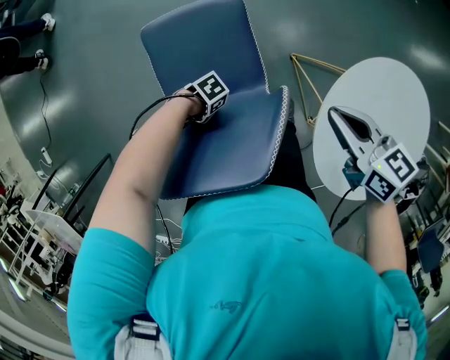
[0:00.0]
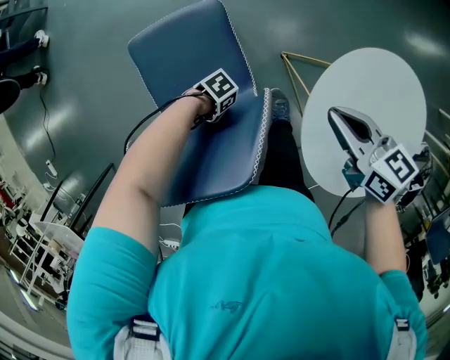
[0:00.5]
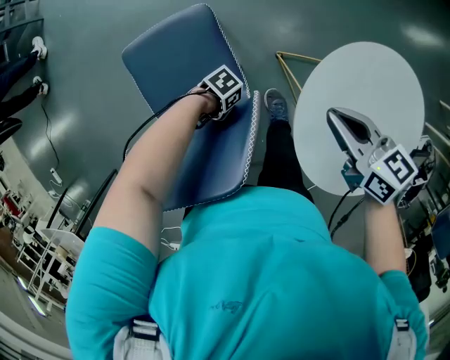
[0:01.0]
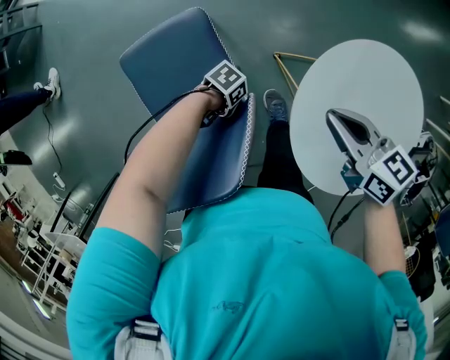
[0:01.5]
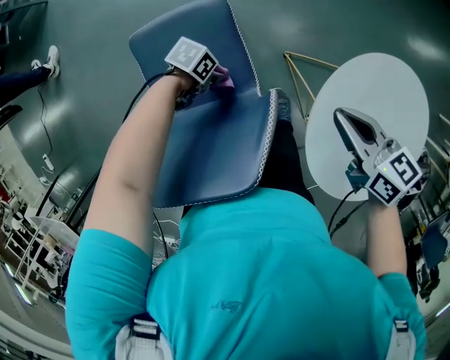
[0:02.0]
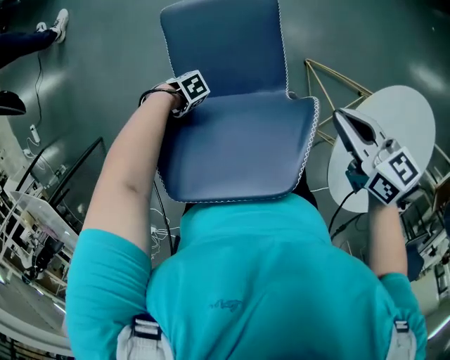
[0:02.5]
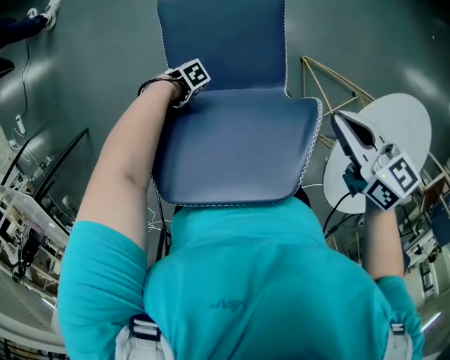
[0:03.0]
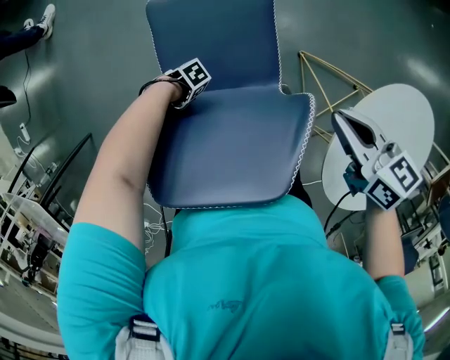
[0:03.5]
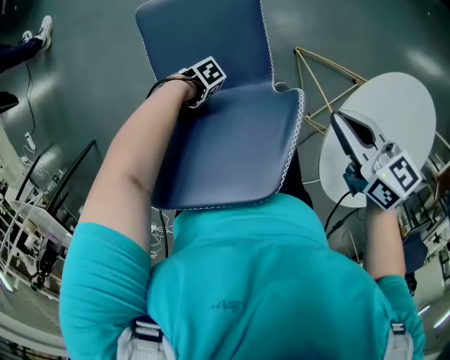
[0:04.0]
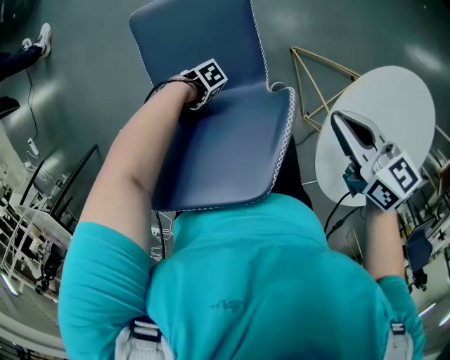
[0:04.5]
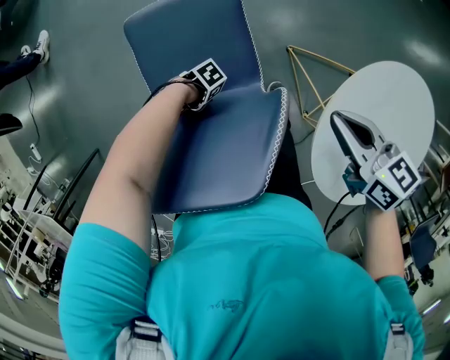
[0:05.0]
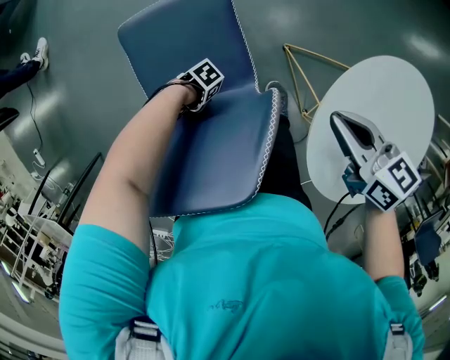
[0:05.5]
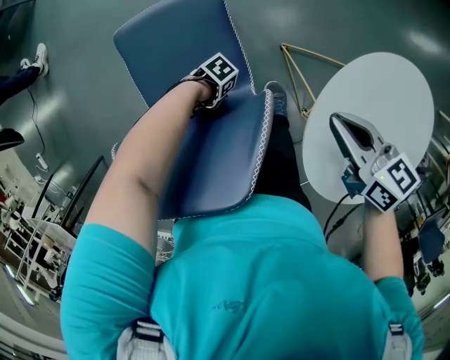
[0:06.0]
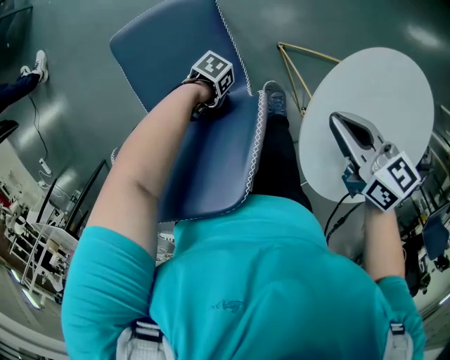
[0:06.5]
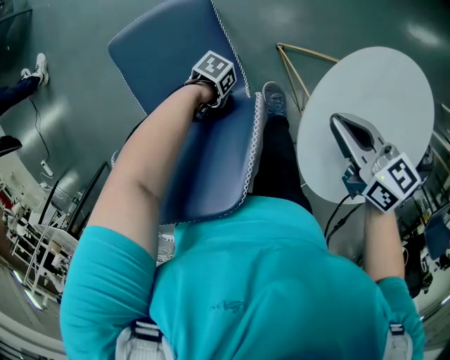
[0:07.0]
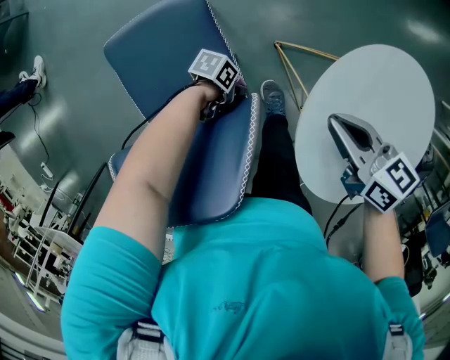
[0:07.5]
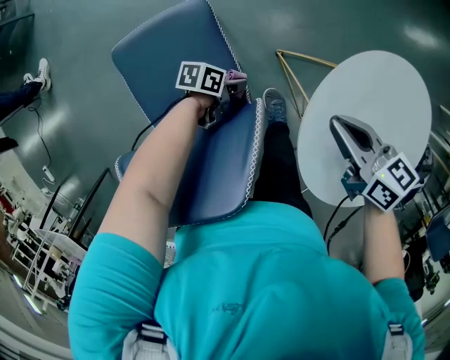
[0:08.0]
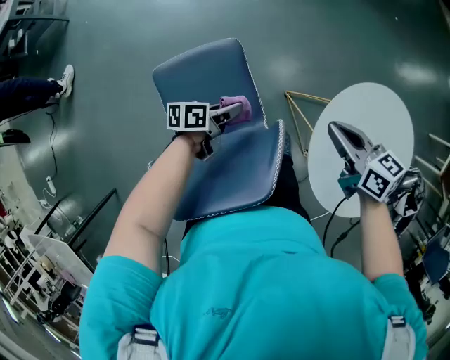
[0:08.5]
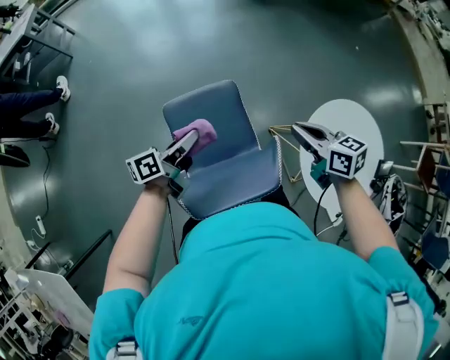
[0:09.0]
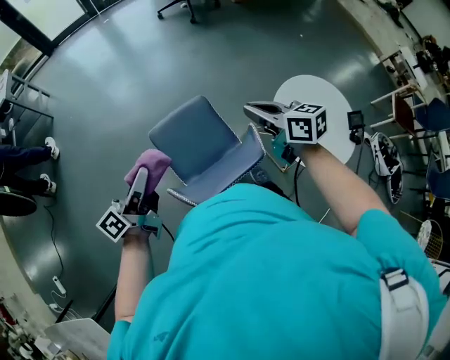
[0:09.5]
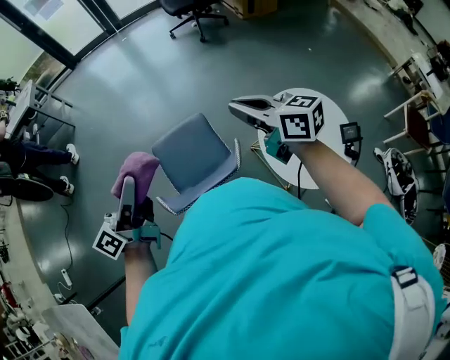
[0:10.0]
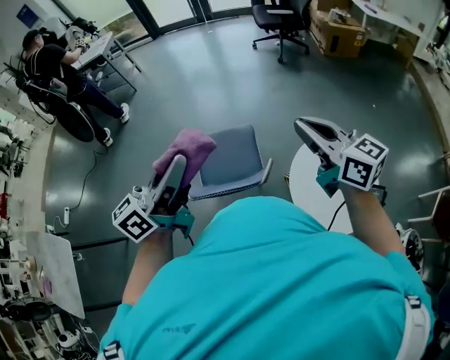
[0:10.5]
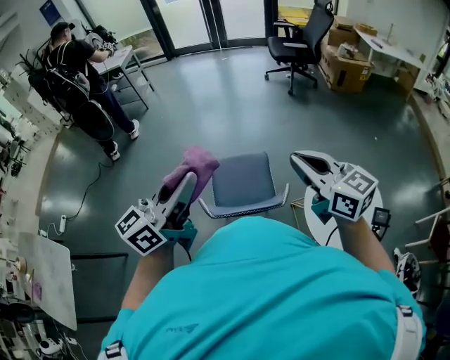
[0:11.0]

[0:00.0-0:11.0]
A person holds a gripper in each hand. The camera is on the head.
0:02.0 to 0:03.5: The right gripper shifts by some 10 cm.
0:03.5 to 0:05.5: The right gripper changes place by some 10 cm.
0:07.5 to 0:09.0: The right gripper moves about 25 cm.
0:09.0 to 0:11.0: The right gripper moves upward, approximately 30 cm, and rotates about 30 degrees.

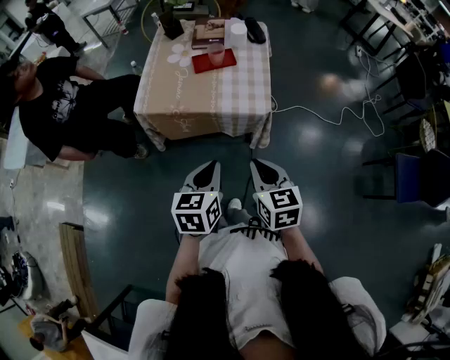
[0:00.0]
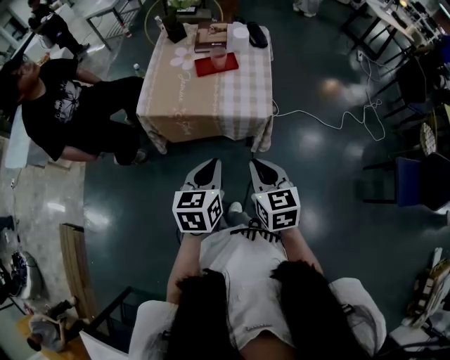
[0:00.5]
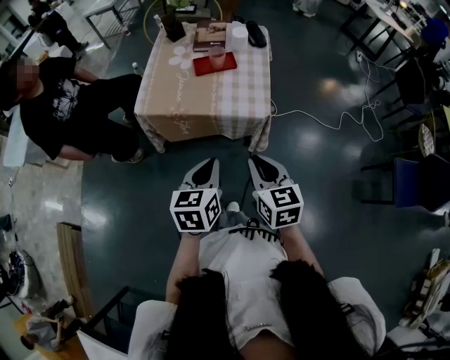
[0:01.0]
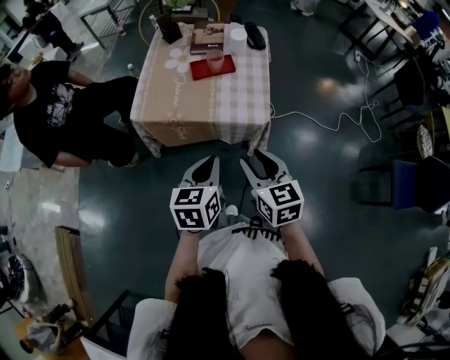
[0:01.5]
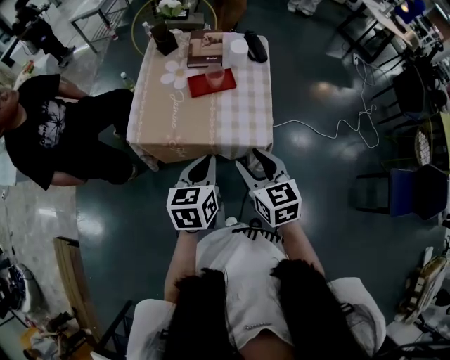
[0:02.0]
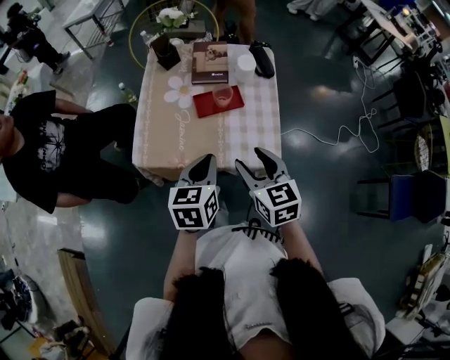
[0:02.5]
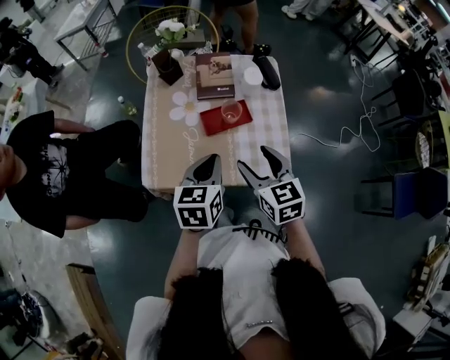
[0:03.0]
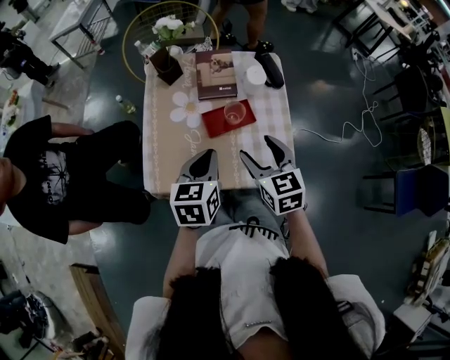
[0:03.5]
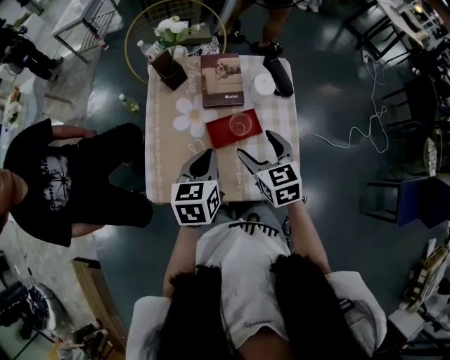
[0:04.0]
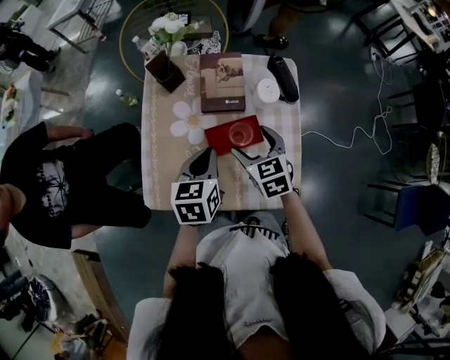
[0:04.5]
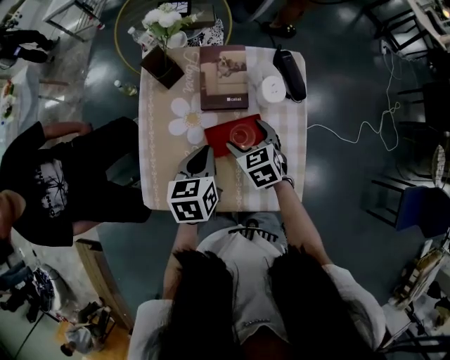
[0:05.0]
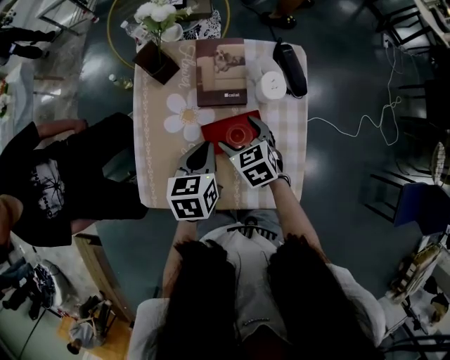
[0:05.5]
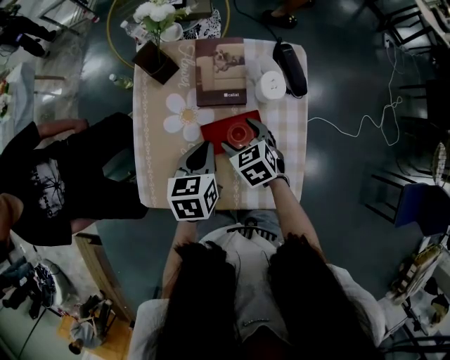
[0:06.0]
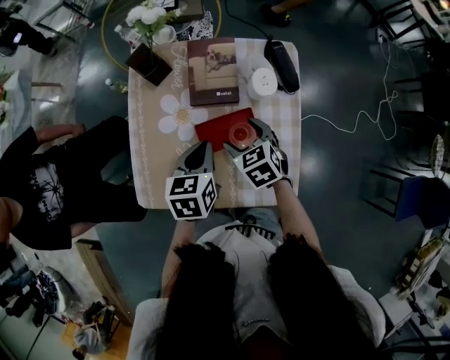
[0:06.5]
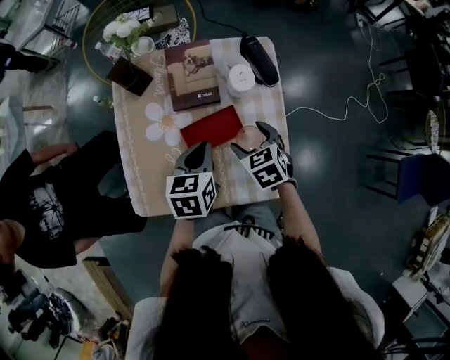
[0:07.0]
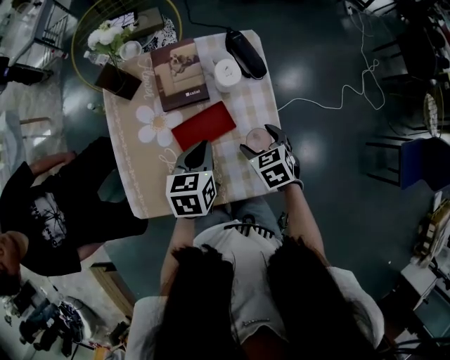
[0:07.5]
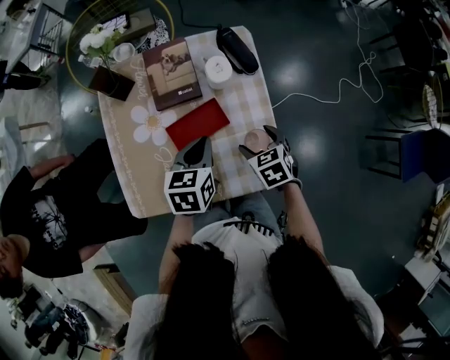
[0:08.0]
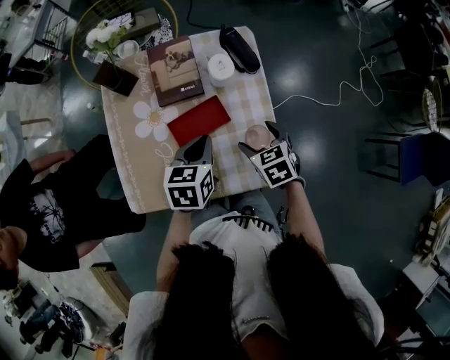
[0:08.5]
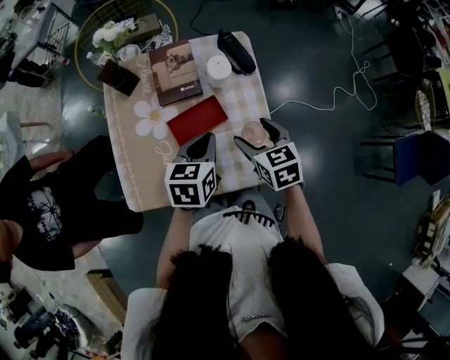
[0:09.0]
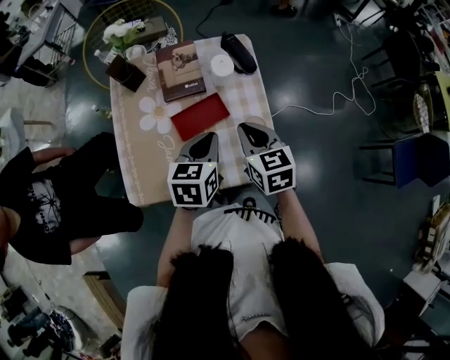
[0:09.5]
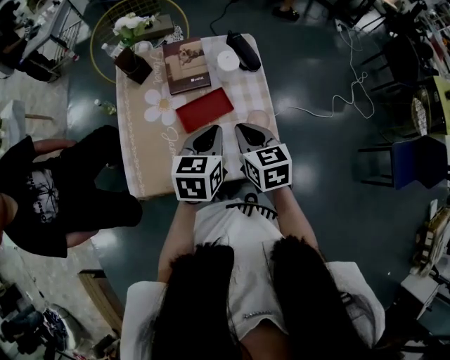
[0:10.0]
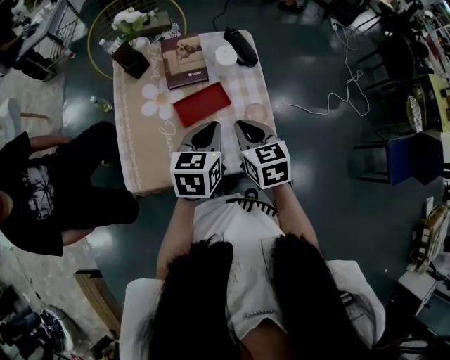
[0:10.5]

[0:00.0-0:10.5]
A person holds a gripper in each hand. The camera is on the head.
0:00.0 to 0:02.0: Both grippers move forward, about 15 cm. The right gripper opens its fingers.
0:02.0 to 0:04.0: The grippers both shift forward by approximately 25 cm. The right gripper opens.
0:04.0 to 0:06.5: The left gripper travels forward and downward by approximately 10 cm, while the right gripper moves downward and forward, about 15 cm, and turns by approximately 20 degrees.
0:06.5 to 0:08.5: The left gripper heads to the right, covering some 10 cm. Meanwhile the right gripper is displaced to the right and backward by some 15 cm.
0:08.5 to 0:10.5: The right gripper shifts about 15 cm upward, backward and to the left, and closes. The left gripper goes roughly 10 cm backward and upward.

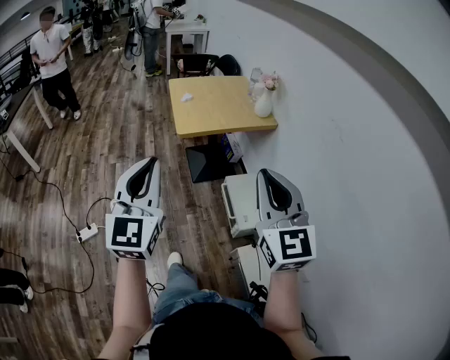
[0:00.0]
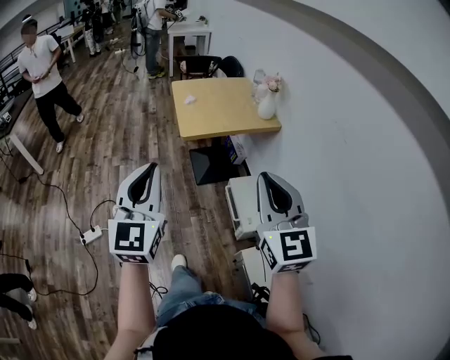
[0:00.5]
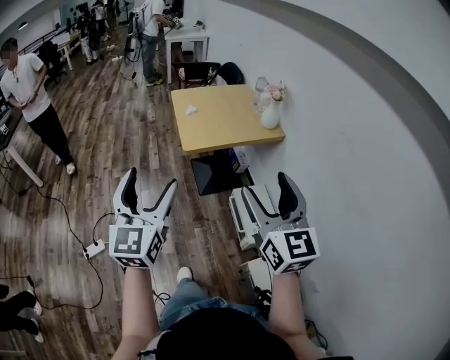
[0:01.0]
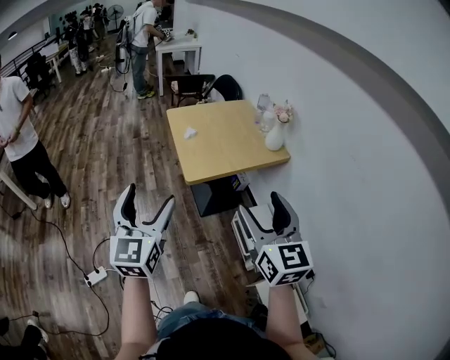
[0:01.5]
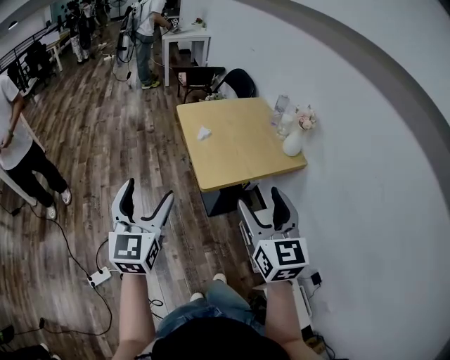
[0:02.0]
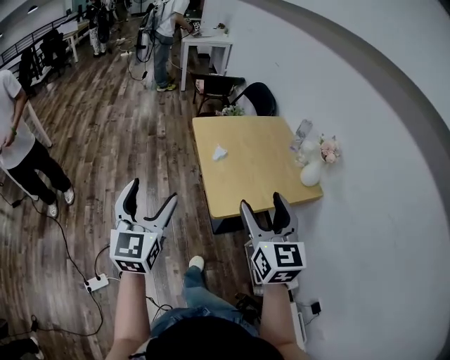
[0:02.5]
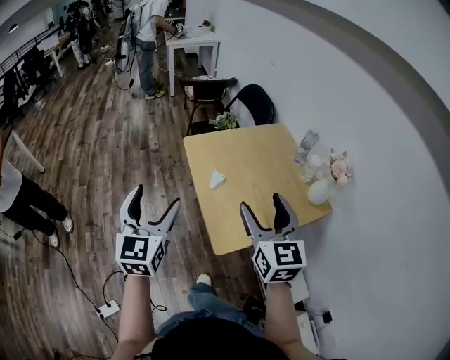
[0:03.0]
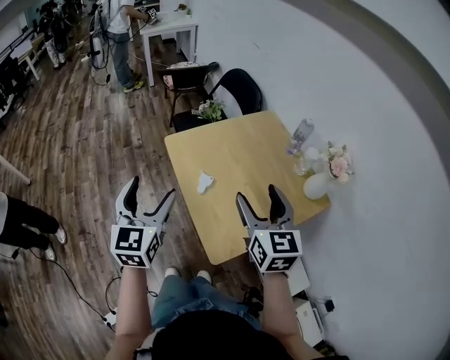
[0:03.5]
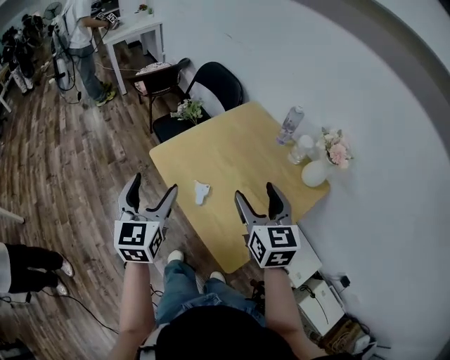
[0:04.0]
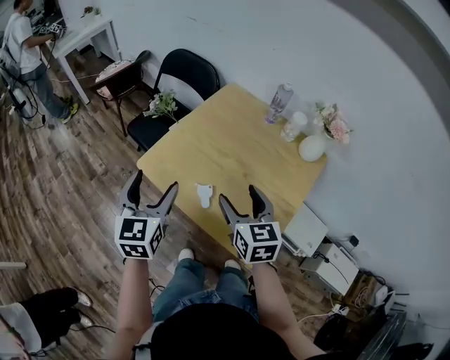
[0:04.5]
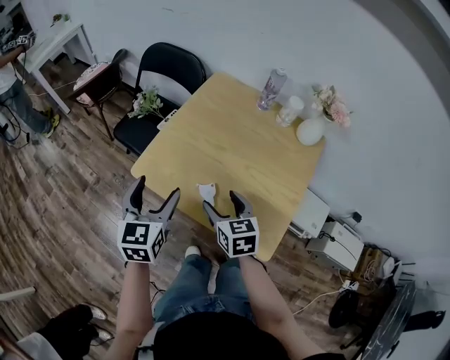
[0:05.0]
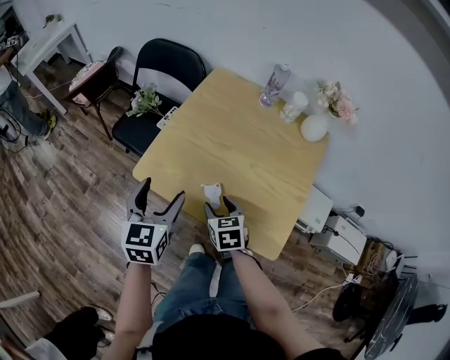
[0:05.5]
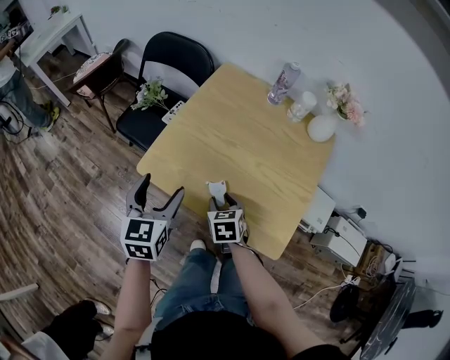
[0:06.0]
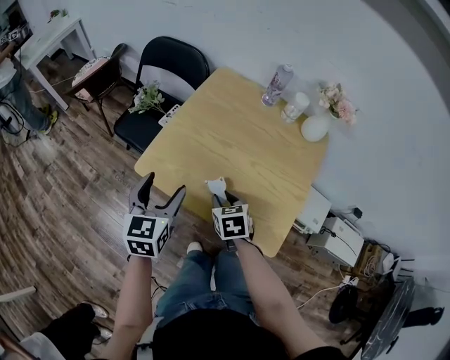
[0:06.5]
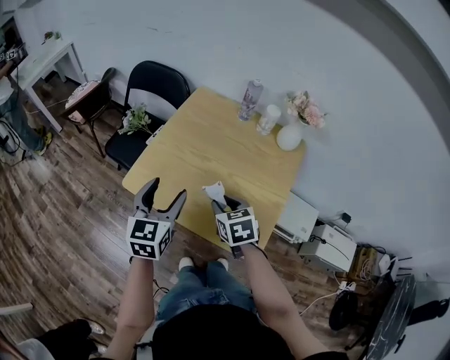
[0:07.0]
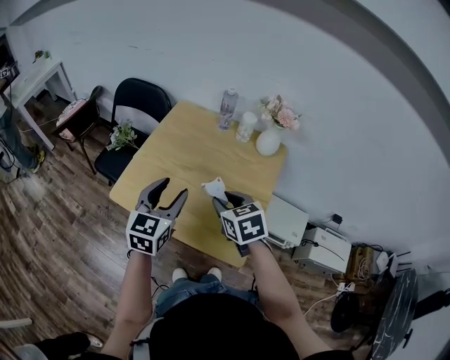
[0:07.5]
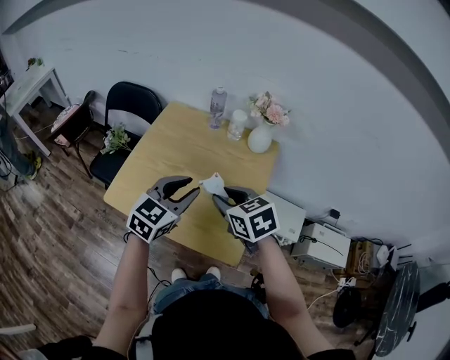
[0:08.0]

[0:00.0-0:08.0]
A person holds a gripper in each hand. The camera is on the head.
0:00.0 to 0:02.0: Both grippers travel together forward and to the left, some 35 cm. The right gripper opens its fingers. The left gripper opens its fingers.
0:02.0 to 0:04.0: The pair of grippers is taken forward, some 50 cm. The left gripper swivels approximately 20 degrees. Meanwhile the right gripper swivels some 20 degrees.
0:04.0 to 0:06.0: The right gripper travels downward by some 30 cm, points its fingers about 40 degrees further downward, and closes its fingers. Meanwhile the left gripper changes place by some 20 cm, and rotates about 30 degrees.
0:06.0 to 0:08.0: The right gripper goes roughly 25 cm upward and to the right. The left gripper travels to the right by roughly 25 cm, turns by about 40 degrees, and closes its fingers.
